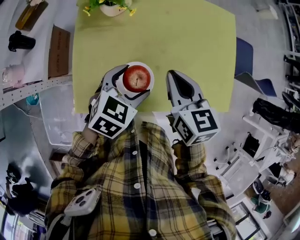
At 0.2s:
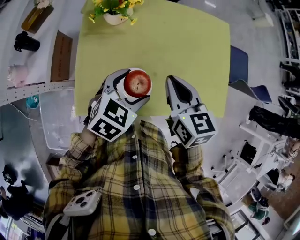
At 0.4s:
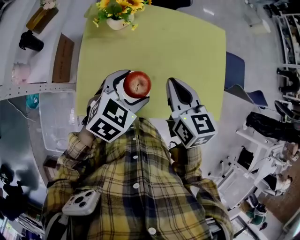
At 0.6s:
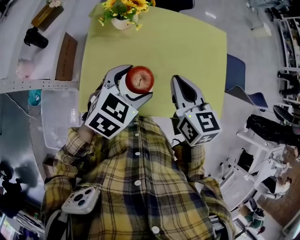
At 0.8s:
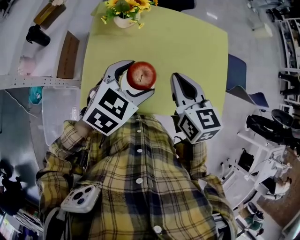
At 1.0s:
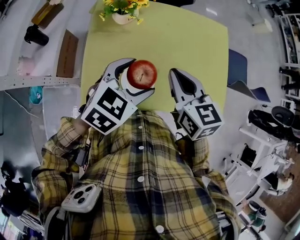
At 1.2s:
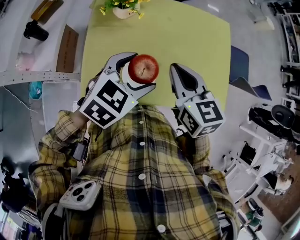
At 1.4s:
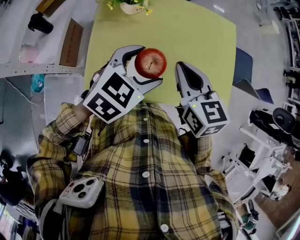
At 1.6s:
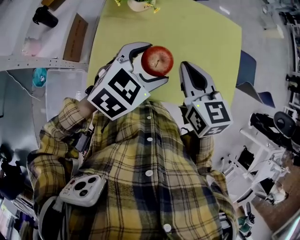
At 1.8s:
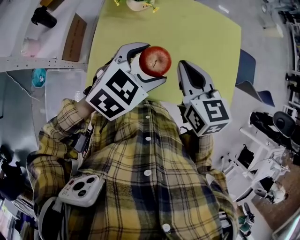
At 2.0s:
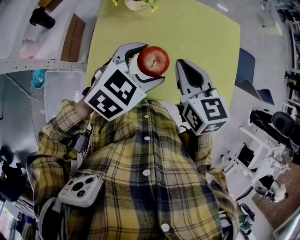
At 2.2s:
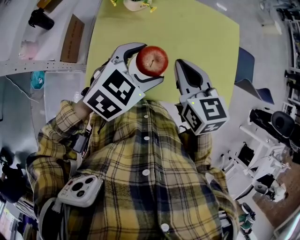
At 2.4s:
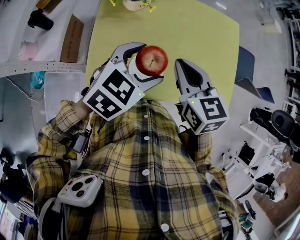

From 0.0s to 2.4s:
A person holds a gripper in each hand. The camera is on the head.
From 0.0s to 1.2s: The left gripper is displaced upward by some 10 cm, while the right gripper heads upward, covering roughly 5 cm.
From 1.2s to 2.4s: The grippers move only a little.

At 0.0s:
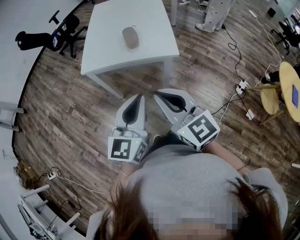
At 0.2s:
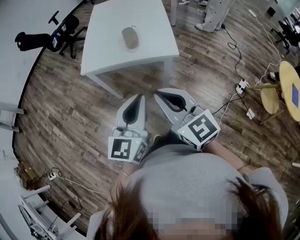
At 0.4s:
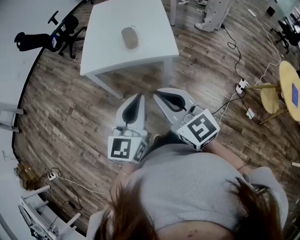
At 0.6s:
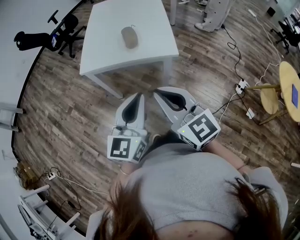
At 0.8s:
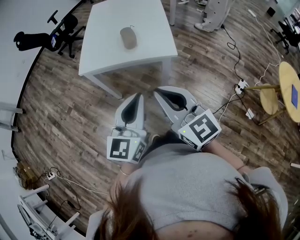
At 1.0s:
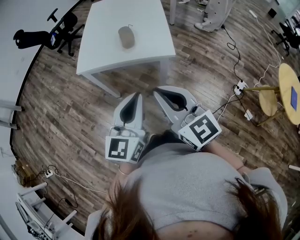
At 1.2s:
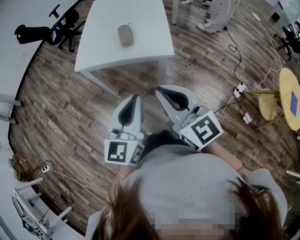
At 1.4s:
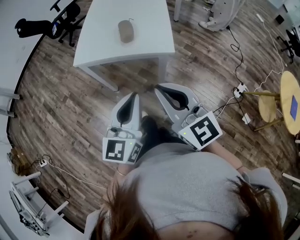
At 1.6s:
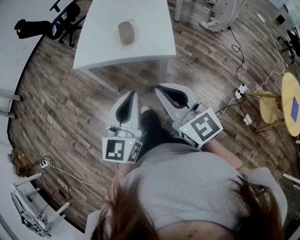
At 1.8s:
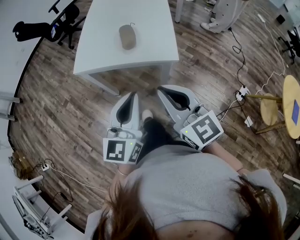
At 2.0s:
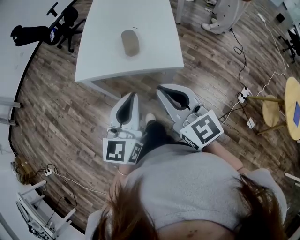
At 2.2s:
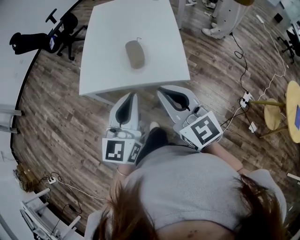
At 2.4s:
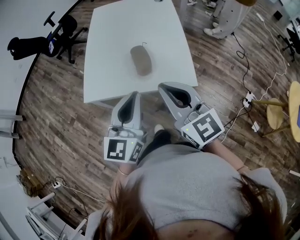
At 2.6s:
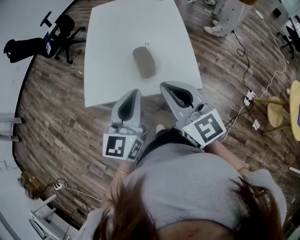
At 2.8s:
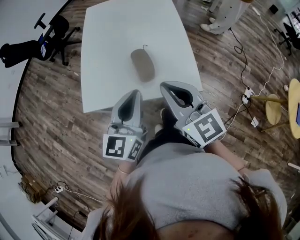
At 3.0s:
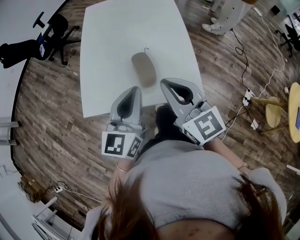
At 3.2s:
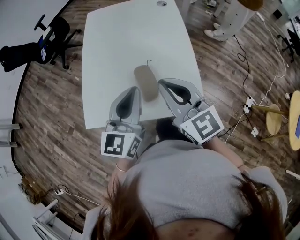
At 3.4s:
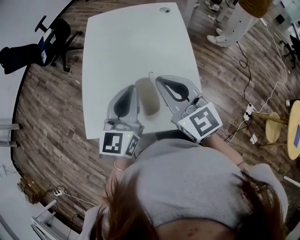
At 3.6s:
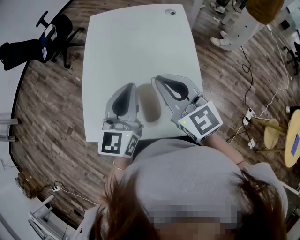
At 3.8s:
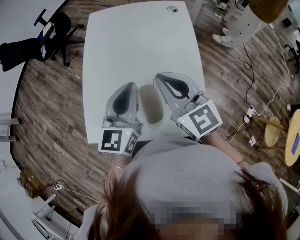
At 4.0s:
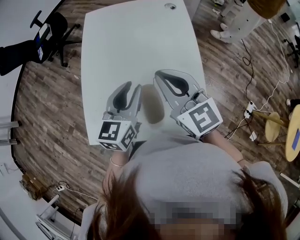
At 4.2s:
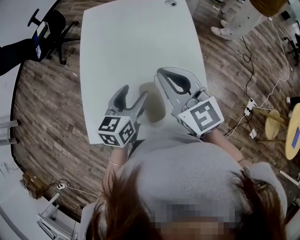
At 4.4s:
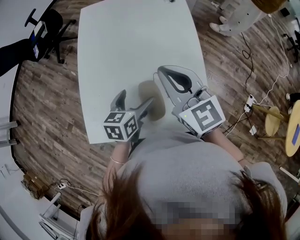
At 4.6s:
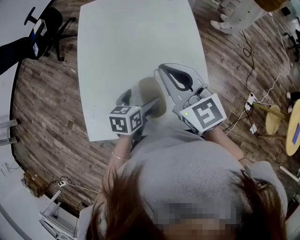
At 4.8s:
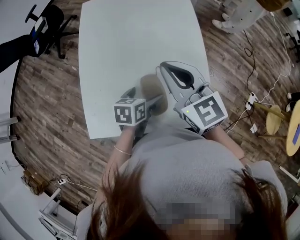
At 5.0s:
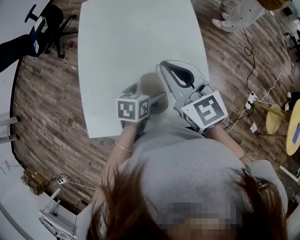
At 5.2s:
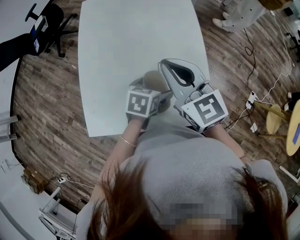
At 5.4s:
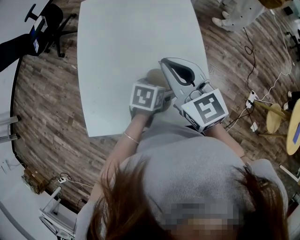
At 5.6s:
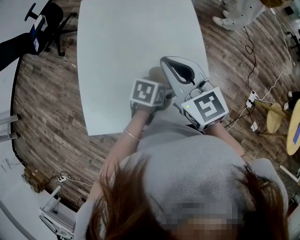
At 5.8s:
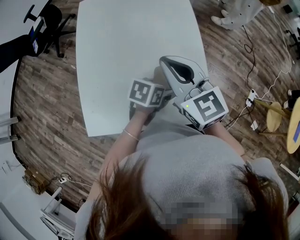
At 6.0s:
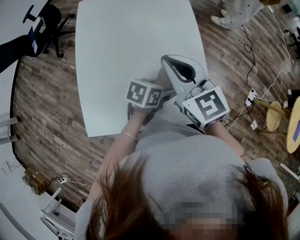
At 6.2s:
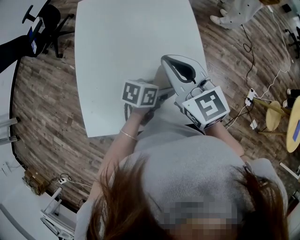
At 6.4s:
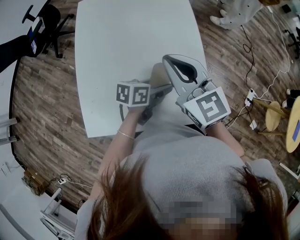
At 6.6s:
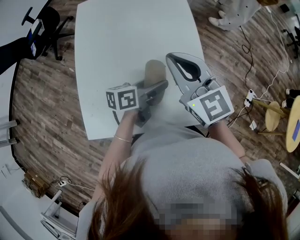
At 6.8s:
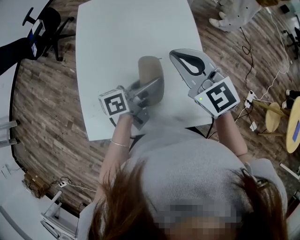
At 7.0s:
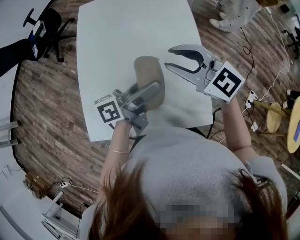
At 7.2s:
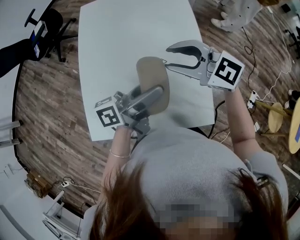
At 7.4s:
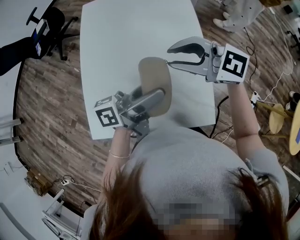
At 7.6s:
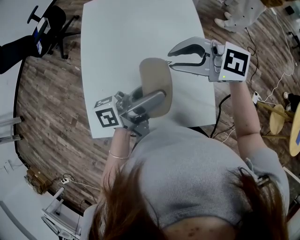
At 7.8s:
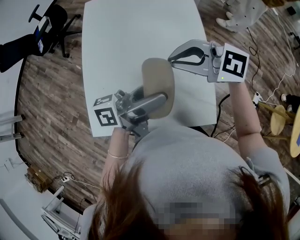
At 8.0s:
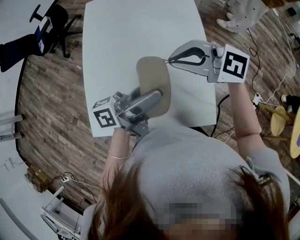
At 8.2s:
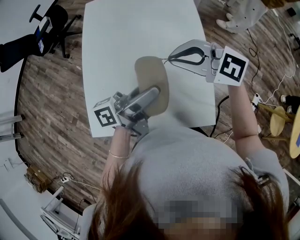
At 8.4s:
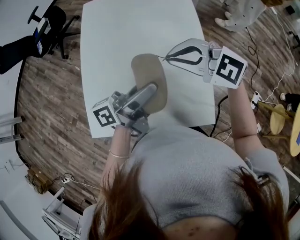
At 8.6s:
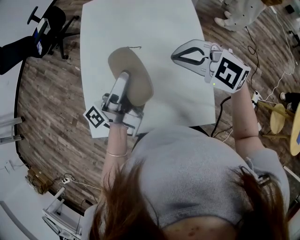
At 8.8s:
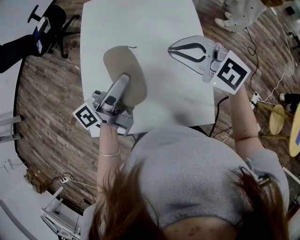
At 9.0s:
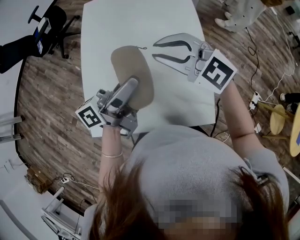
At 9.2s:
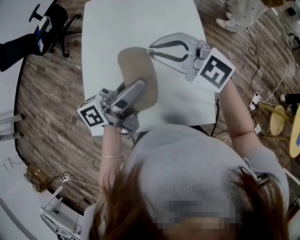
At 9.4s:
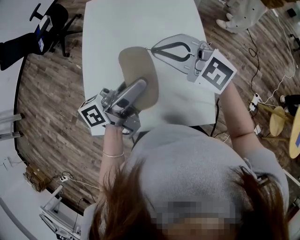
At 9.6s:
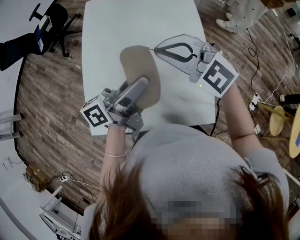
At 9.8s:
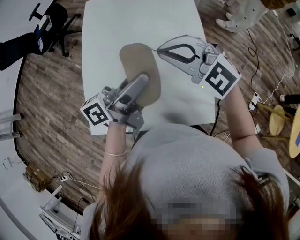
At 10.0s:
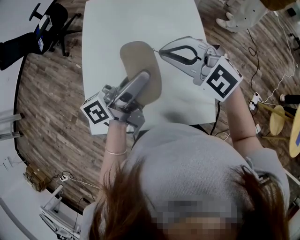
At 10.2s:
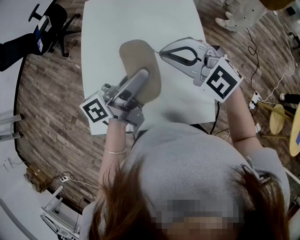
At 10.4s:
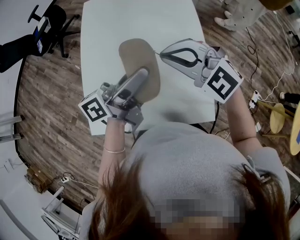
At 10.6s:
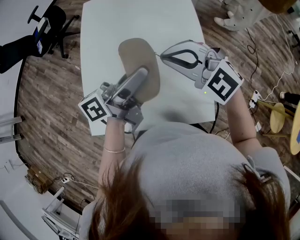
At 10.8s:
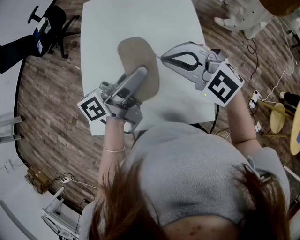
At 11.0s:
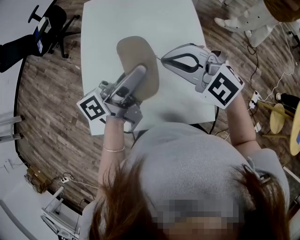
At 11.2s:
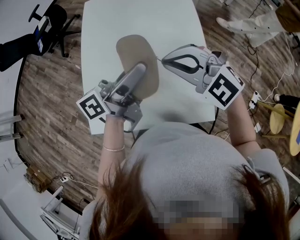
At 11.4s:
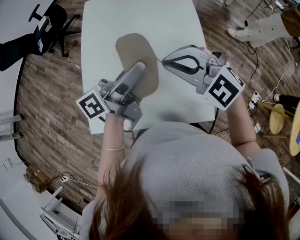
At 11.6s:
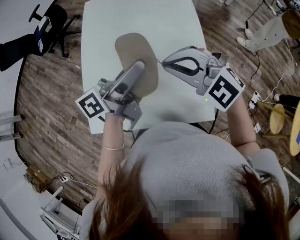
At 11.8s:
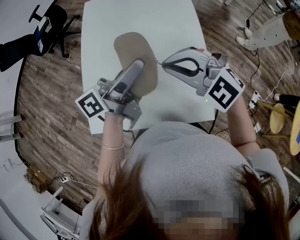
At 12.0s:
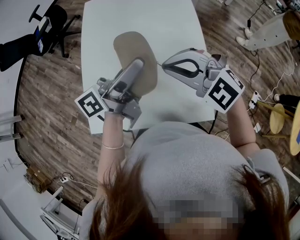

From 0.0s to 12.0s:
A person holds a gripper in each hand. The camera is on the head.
From 0.0s to 1.6s: The right gripper heads to the right, covering approximately 5 cm.
From 1.6s to 3.0s: Both grippers move forward, approximately 25 cm.
From 3.0s to 4.4s: The right gripper shifts some 20 cm forward; the left gripper is displaced downward and forward by about 20 cm, tips its fingers downward by approximately 30 degrees, and opens its fingers.
From 4.4s to 6.0s: The left gripper heads to the right, covering about 10 cm, and changes its angle by roughly 30 degrees.
From 6.0s to 7.6s: The right gripper changes its angle by some 50 degrees. The left gripper travels upward by about 20 cm, and tilts its fingers roughly 60 degrees upward.
From 7.6s to 9.0s: The left gripper changes place by about 5 cm, while the right gripper rotates about 20 degrees.
From 9.0s to 12.0s: The grippers stay close to where they were, moving slightly.

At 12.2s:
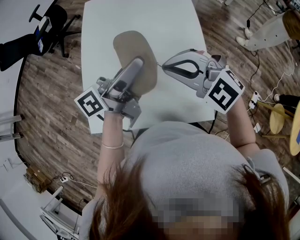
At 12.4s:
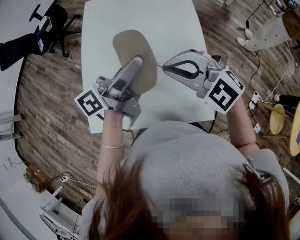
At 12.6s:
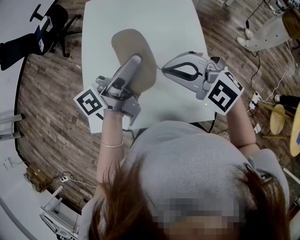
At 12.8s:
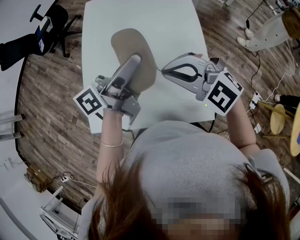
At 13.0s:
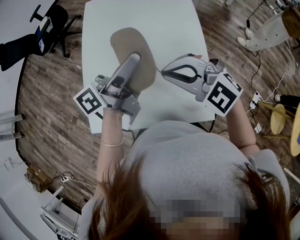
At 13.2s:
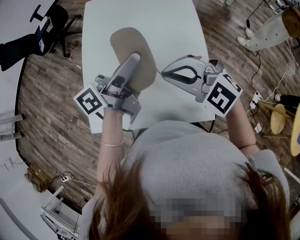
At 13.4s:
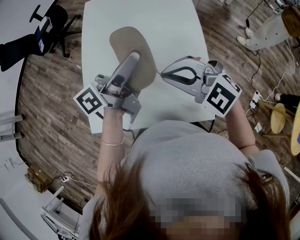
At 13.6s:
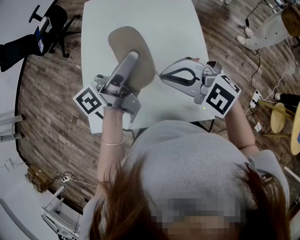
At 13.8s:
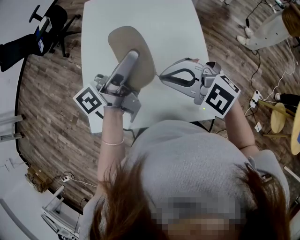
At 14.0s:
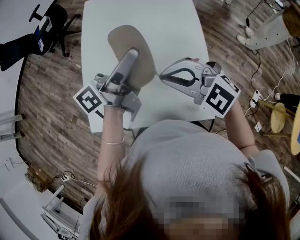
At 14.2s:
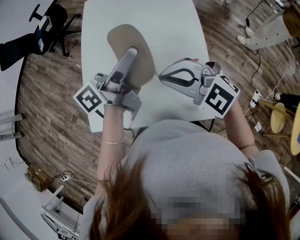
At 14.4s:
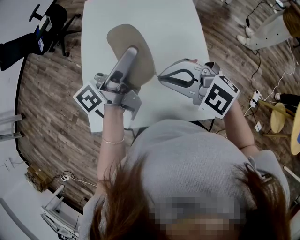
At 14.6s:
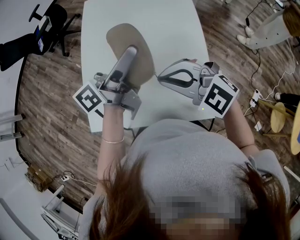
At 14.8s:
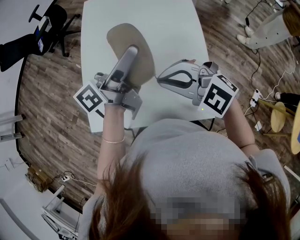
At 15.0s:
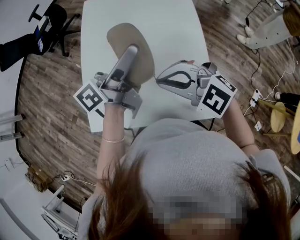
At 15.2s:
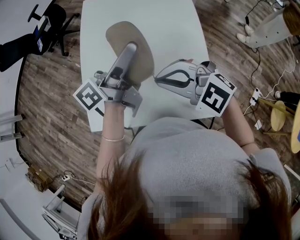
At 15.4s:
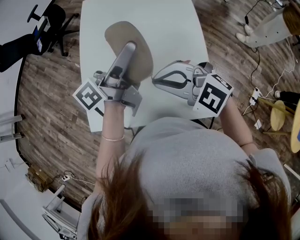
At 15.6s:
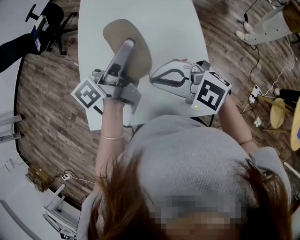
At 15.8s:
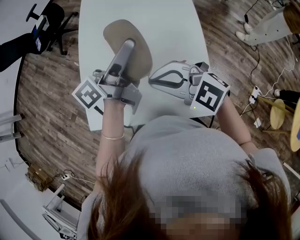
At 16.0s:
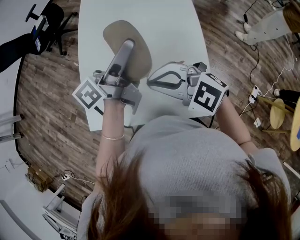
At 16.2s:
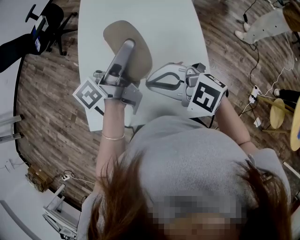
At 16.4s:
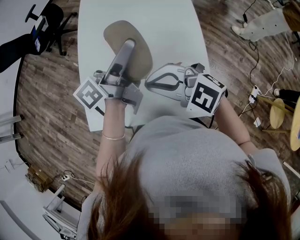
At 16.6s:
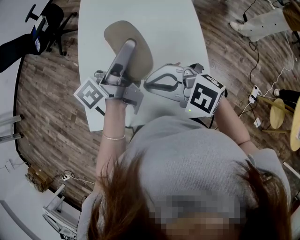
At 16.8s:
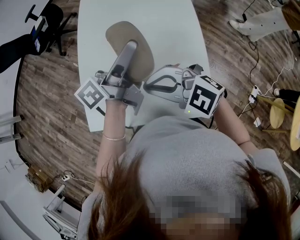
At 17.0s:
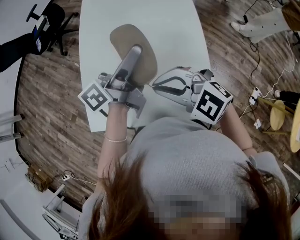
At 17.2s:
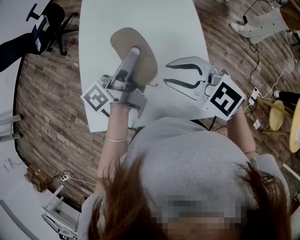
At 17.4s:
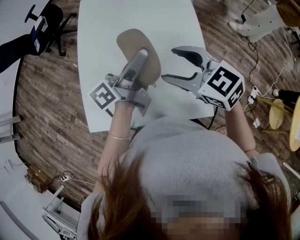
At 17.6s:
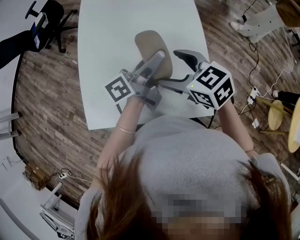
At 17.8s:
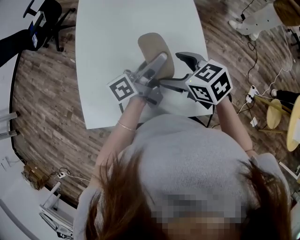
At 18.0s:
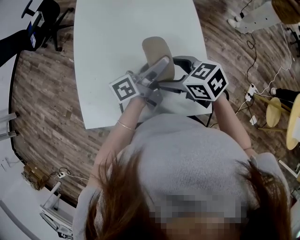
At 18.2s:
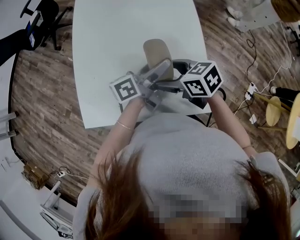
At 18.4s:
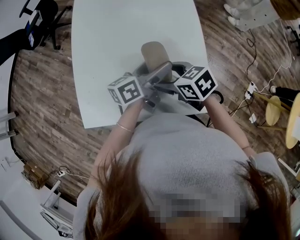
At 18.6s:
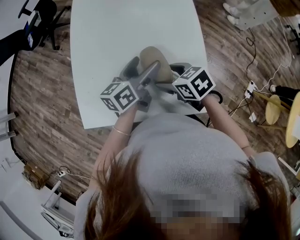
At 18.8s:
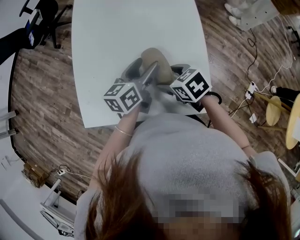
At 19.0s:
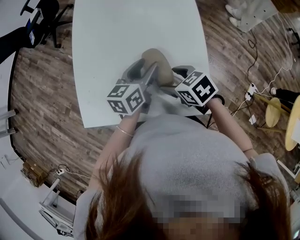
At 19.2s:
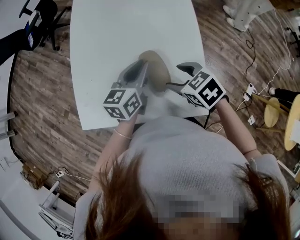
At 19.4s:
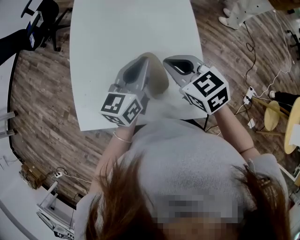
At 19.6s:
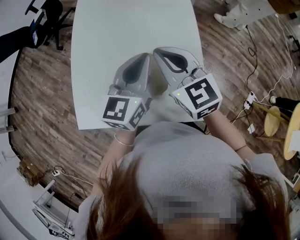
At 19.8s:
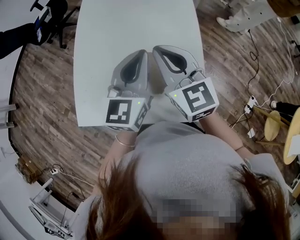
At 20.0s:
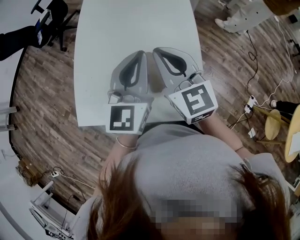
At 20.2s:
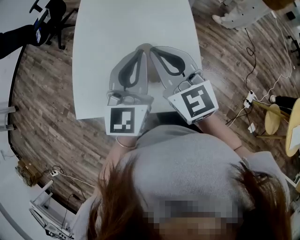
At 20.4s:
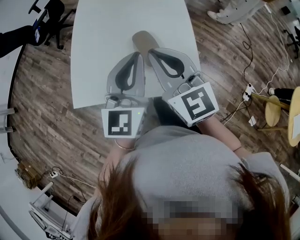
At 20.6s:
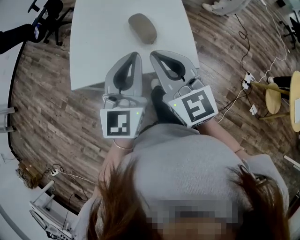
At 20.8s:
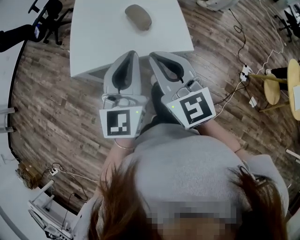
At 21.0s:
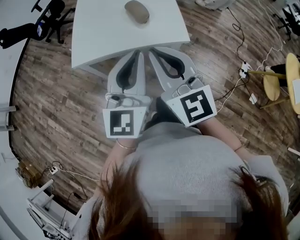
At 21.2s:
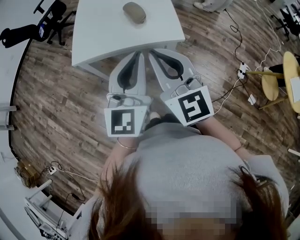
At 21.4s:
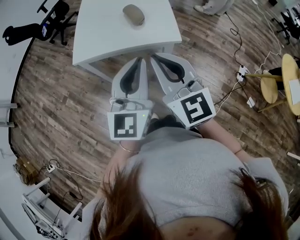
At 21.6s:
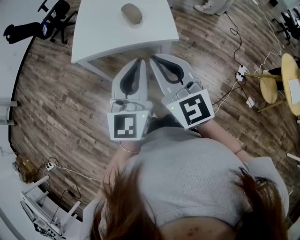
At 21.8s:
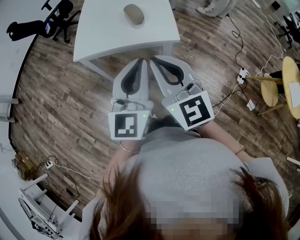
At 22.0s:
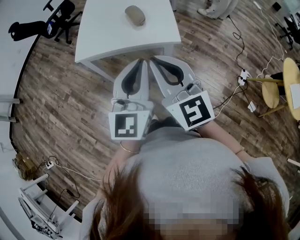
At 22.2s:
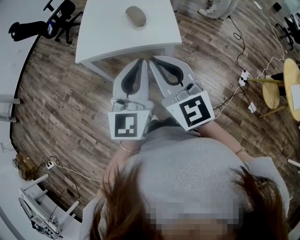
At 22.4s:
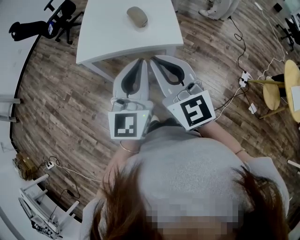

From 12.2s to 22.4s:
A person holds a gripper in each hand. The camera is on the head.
From 12.2s to 15.2s: There are only small adjustments of the grippers.
From 15.2s to 16.6s: The grippers move only a little.
From 16.6s to 18.0s: The left gripper travels downward, to the right and backward by approximately 15 cm, while the right gripper goes roughly 10 cm downward and to the right, rotates around the line of its fingers by about 50 degrees, clockwise from behind, and opens up.
From 18.0s to 19.4s: The left gripper twists about 50 degrees clockwise, seen from behind, and closes, while the right gripper ends up about 5 cm from where it was, and closes up.
From 19.4s to 21.0s: Both grippers travel together backward, about 35 cm. The left gripper rotates roughly 30 degrees; the right gripper tips its fingers upward by some 30 degrees.
From 21.0s to 22.4s: Both grippers travel together backward, some 5 cm.
